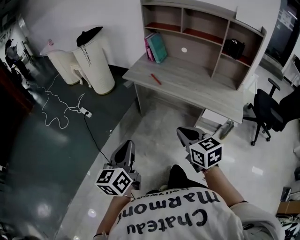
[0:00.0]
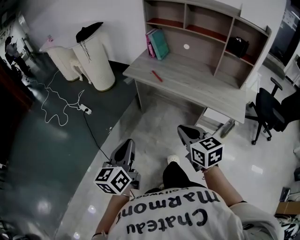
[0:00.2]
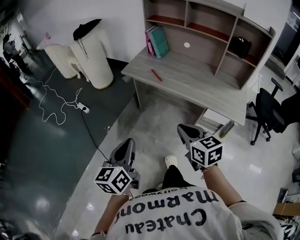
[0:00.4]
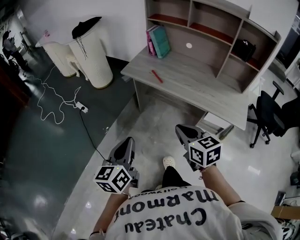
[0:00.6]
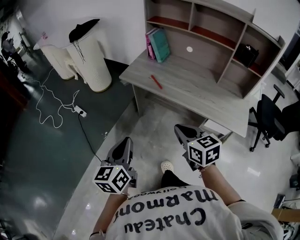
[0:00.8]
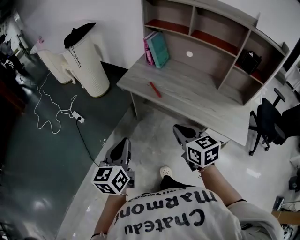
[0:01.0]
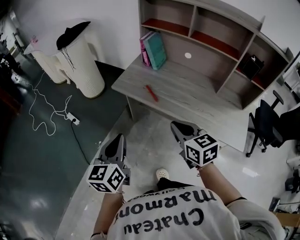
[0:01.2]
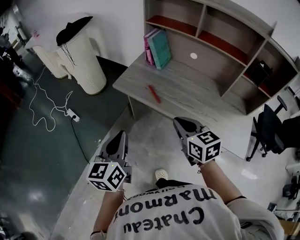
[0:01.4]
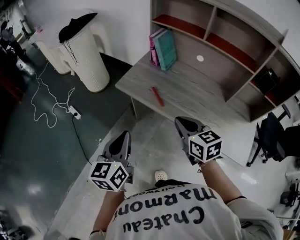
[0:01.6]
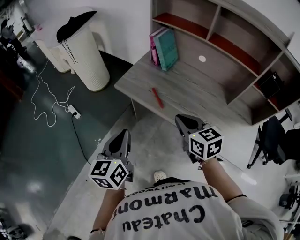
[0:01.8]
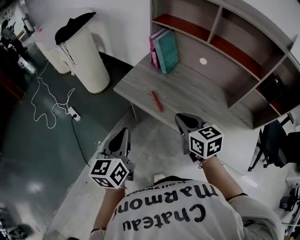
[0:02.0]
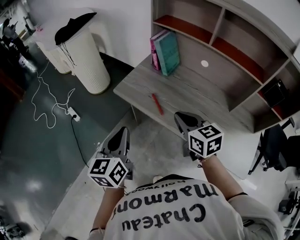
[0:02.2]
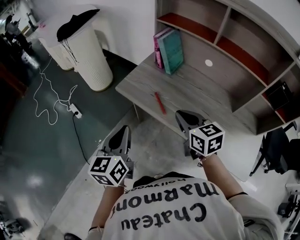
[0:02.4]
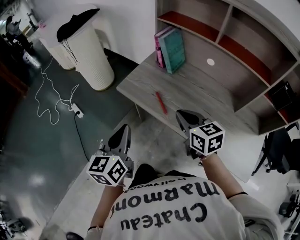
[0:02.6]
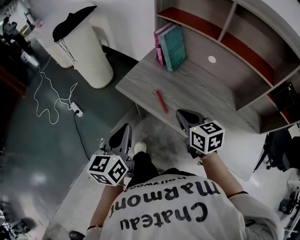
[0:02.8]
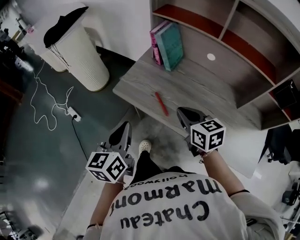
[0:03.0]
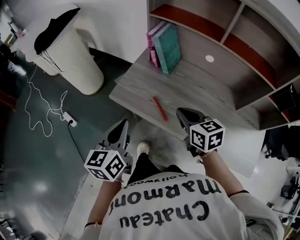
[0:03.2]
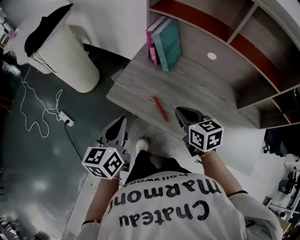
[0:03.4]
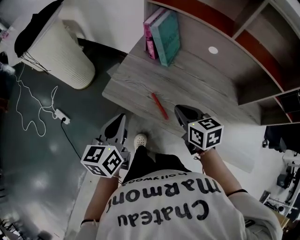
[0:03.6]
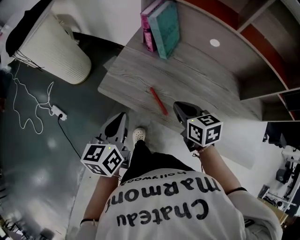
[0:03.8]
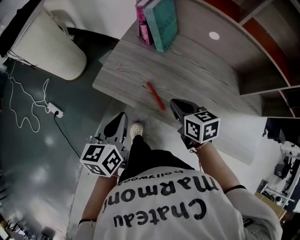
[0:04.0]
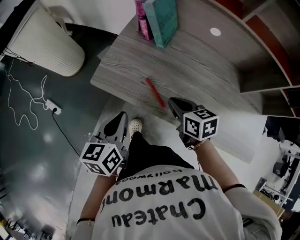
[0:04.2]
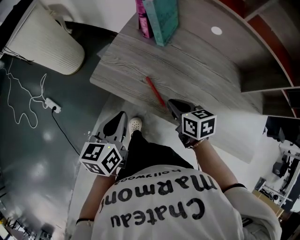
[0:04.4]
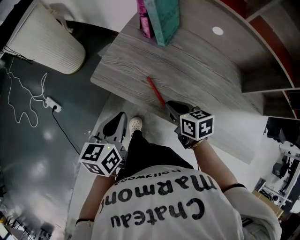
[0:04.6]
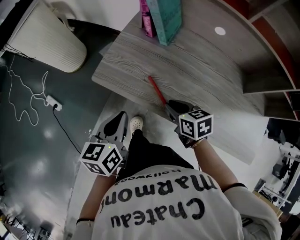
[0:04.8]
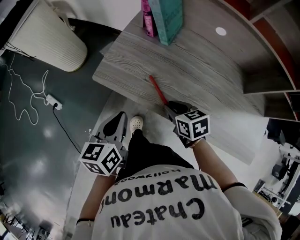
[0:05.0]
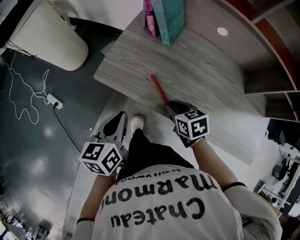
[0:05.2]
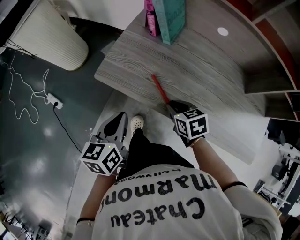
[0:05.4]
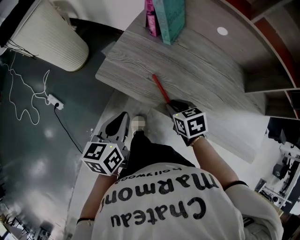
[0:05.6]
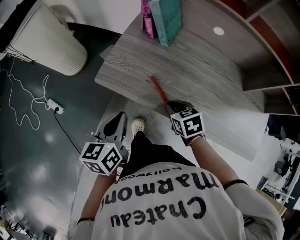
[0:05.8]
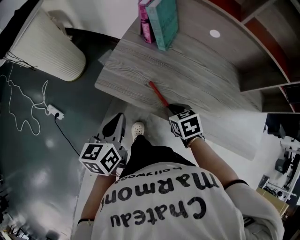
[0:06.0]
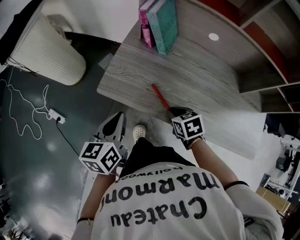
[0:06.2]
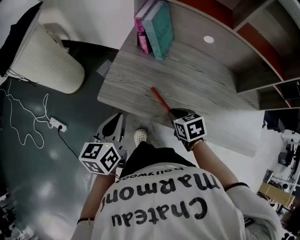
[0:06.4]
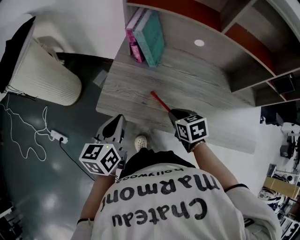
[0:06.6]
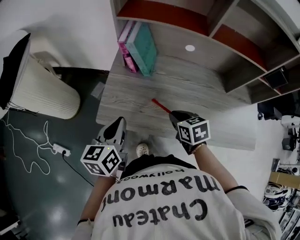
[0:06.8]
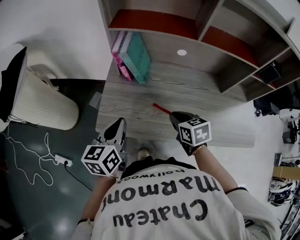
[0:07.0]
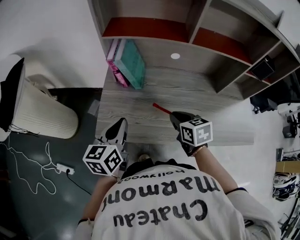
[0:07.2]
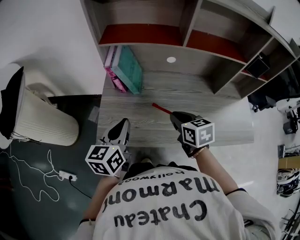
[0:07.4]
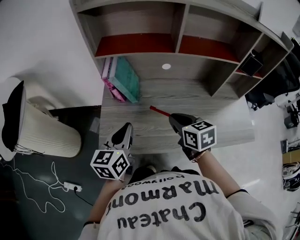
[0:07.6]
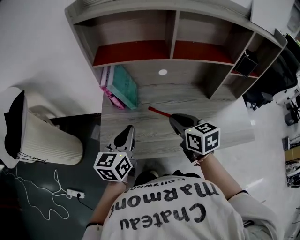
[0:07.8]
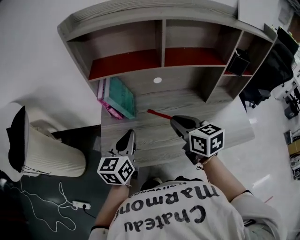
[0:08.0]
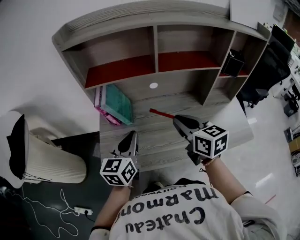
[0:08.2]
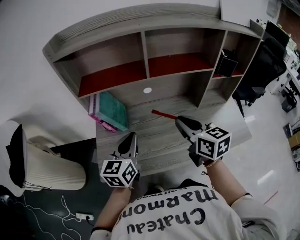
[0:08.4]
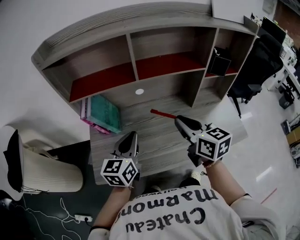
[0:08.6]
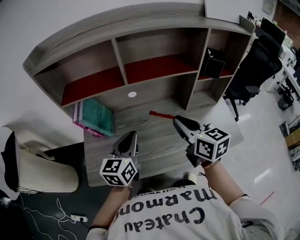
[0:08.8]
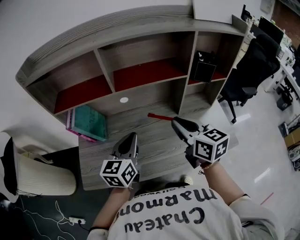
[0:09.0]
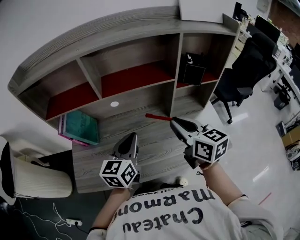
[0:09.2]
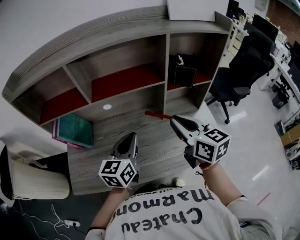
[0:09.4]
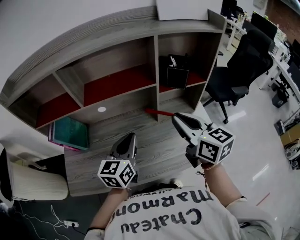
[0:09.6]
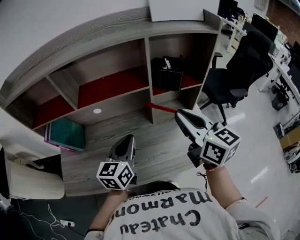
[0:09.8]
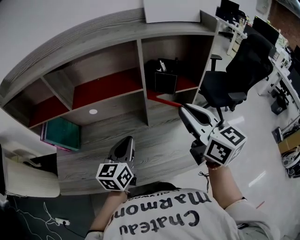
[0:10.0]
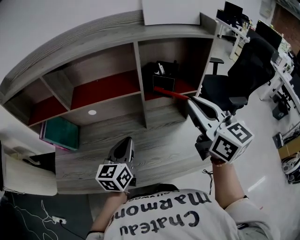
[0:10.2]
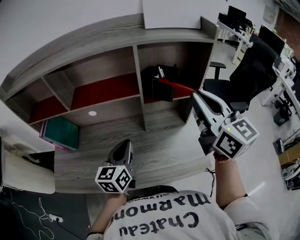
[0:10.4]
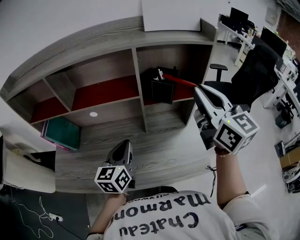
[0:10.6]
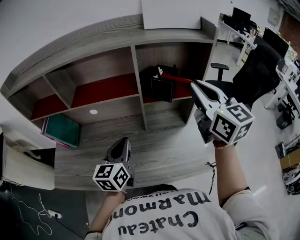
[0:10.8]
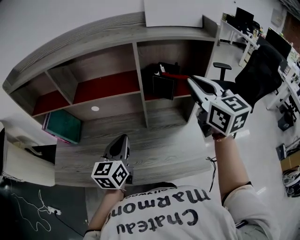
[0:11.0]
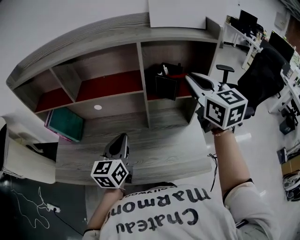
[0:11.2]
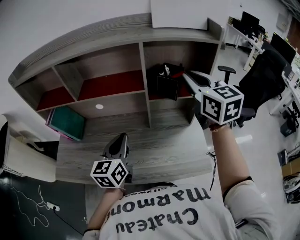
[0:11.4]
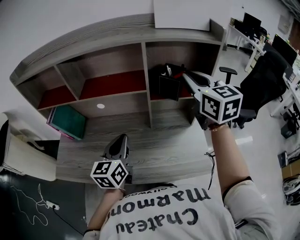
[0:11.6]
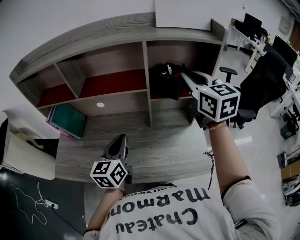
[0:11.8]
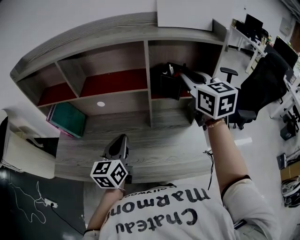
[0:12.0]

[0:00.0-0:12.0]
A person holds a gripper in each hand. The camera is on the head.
0:00.0 to 0:01.6: The grippers both shift forward by about 30 cm.
0:01.6 to 0:03.0: Both grippers move forward, about 15 cm.
0:03.0 to 0:04.4: The left gripper shifts about 15 cm downward and forward, while the right gripper travels downward by approximately 15 cm, and rotates some 20 degrees.
0:04.4 to 0:06.0: The right gripper rotates approximately 20 degrees.
0:06.0 to 0:07.6: The left gripper shifts about 20 cm forward, upward and to the right, and changes its angle by some 30 degrees. Meanwhile the right gripper shifts some 20 cm upward, and changes its angle by roughly 40 degrees.
0:07.6 to 0:09.0: The right gripper goes roughly 25 cm to the right and upward, and swivels some 20 degrees, while the left gripper travels to the right by approximately 20 cm.
0:09.0 to 0:10.4: The left gripper travels to the right by some 20 cm. Meanwhile the right gripper heads to the right and upward, covering roughly 30 cm, and rotates approximately 20 degrees.
0:10.4 to 0:12.0: The right gripper heads forward, covering roughly 10 cm.

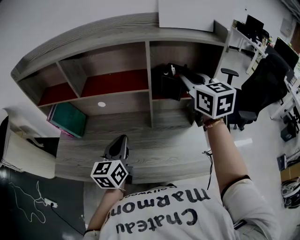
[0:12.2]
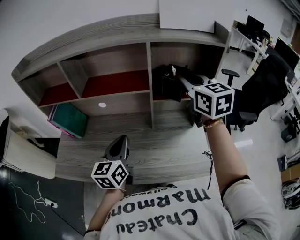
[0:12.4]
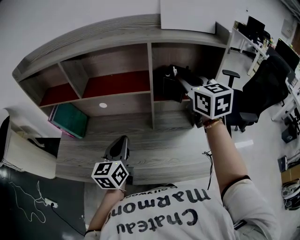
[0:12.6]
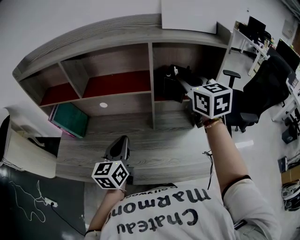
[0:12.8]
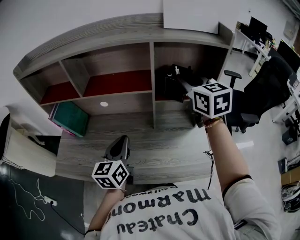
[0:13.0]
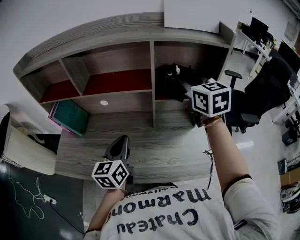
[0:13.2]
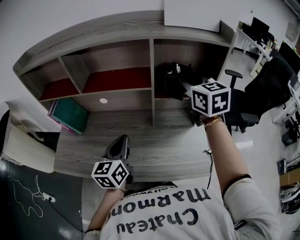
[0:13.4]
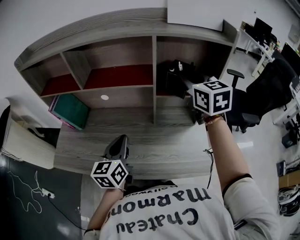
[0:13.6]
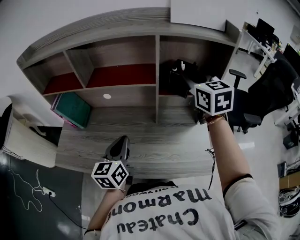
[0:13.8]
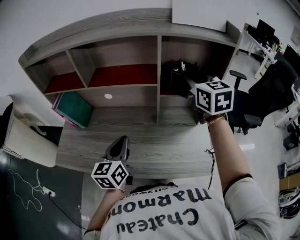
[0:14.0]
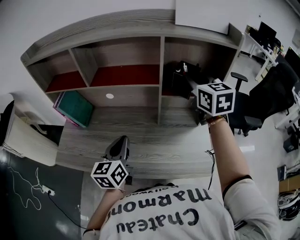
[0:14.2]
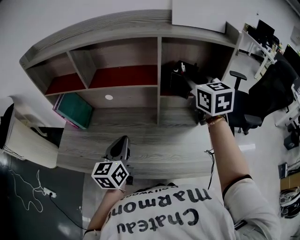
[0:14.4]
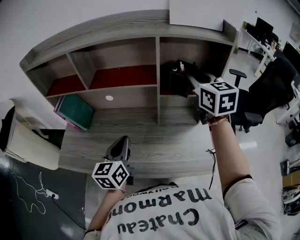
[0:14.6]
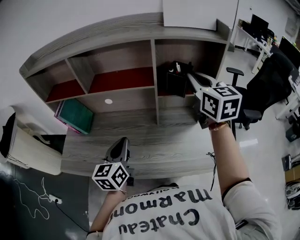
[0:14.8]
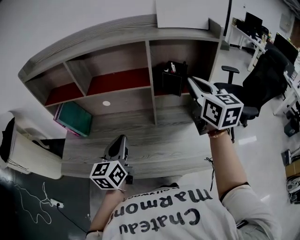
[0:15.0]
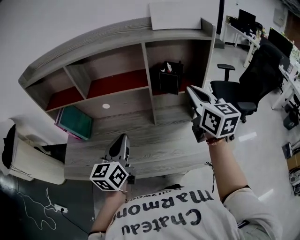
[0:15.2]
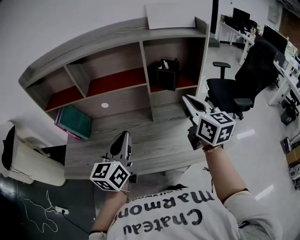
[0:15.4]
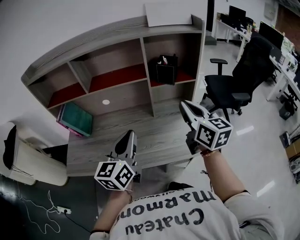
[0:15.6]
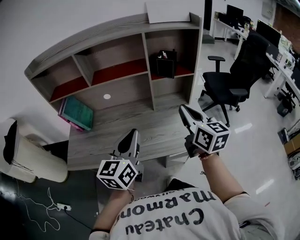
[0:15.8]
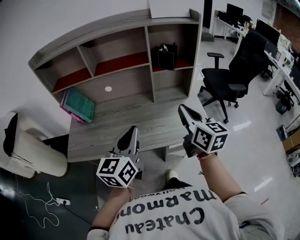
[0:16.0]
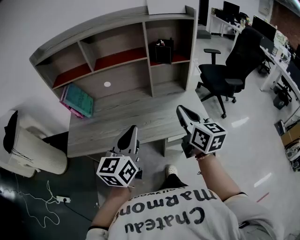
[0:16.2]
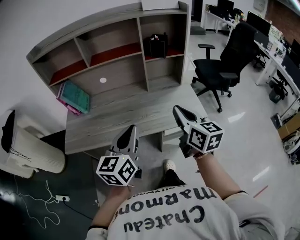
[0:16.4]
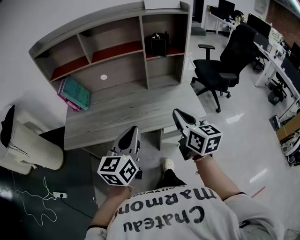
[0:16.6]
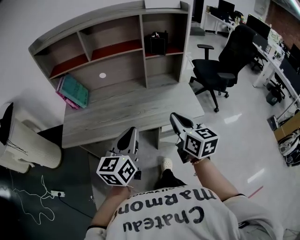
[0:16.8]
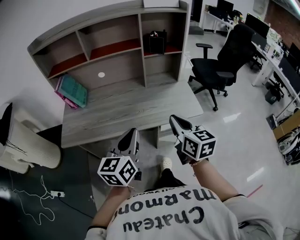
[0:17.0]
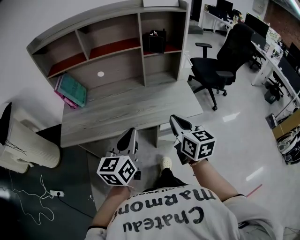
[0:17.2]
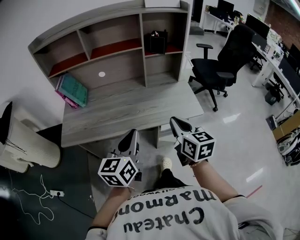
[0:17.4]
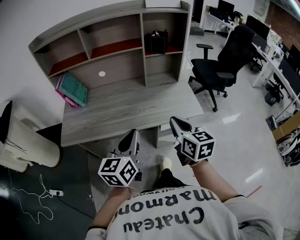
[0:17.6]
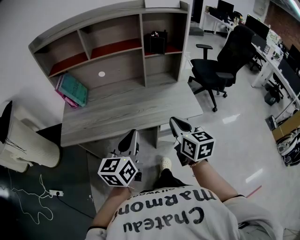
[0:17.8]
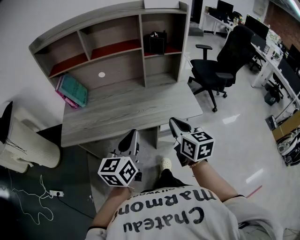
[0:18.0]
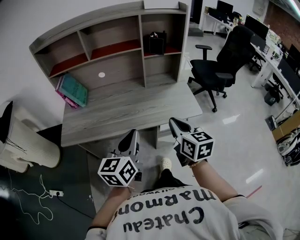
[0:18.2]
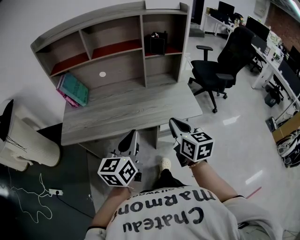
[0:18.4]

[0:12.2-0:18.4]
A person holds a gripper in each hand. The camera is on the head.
0:12.2 to 0:13.8: There are only small adjustments of the grippers.
0:13.8 to 0:15.4: The left gripper goes some 10 cm upward; the right gripper travels backward by approximately 15 cm, and rotates roughly 20 degrees.
0:15.4 to 0:16.8: The left gripper moves backward, about 20 cm, while the right gripper travels backward and downward by roughly 30 cm.
0:16.8 to 0:18.4: The grippers make only small movements.

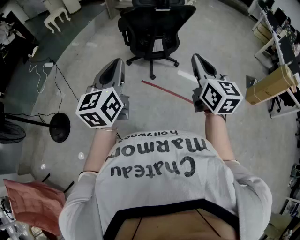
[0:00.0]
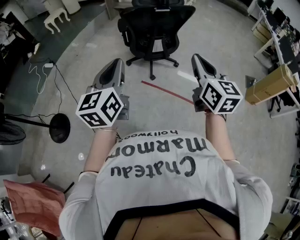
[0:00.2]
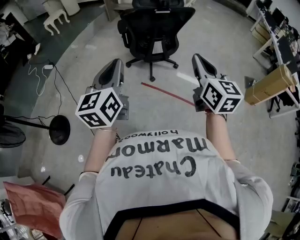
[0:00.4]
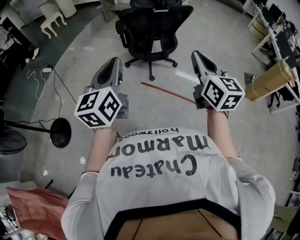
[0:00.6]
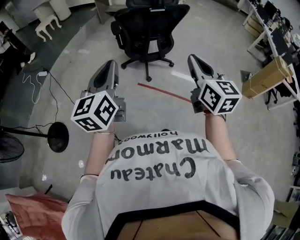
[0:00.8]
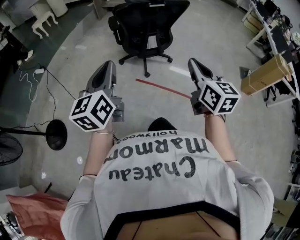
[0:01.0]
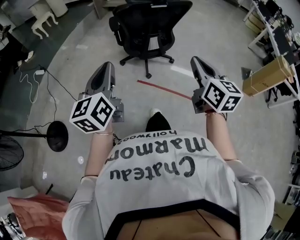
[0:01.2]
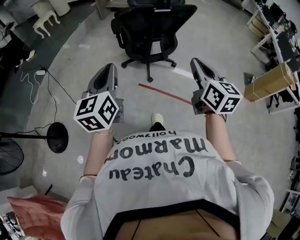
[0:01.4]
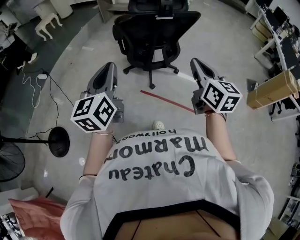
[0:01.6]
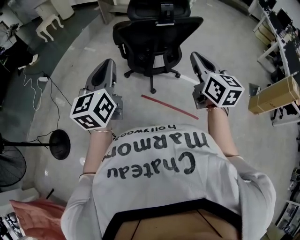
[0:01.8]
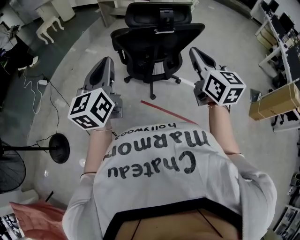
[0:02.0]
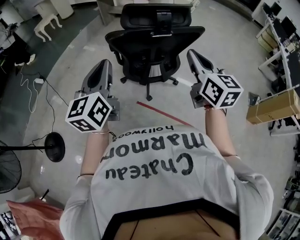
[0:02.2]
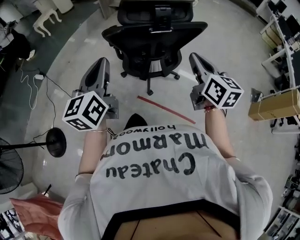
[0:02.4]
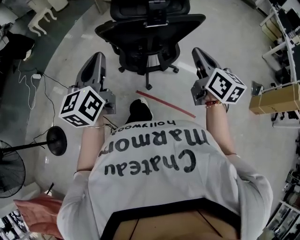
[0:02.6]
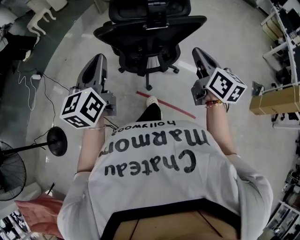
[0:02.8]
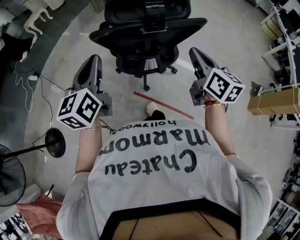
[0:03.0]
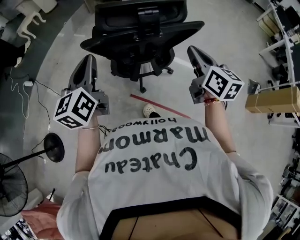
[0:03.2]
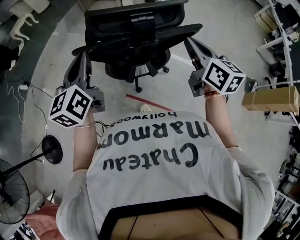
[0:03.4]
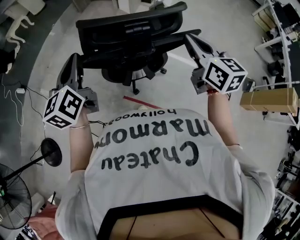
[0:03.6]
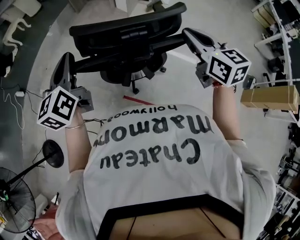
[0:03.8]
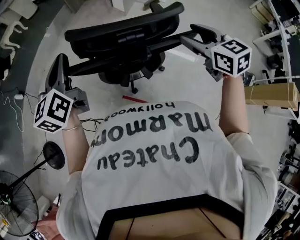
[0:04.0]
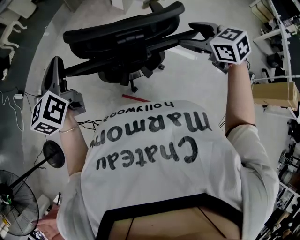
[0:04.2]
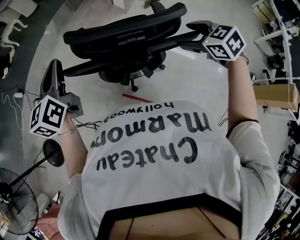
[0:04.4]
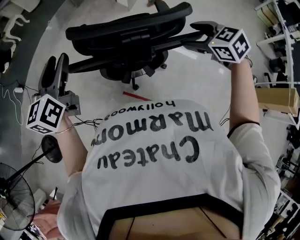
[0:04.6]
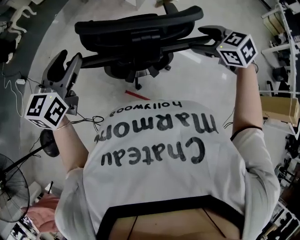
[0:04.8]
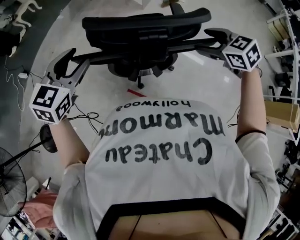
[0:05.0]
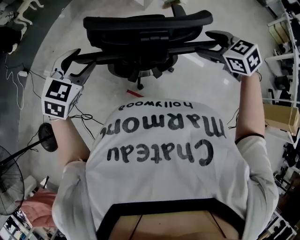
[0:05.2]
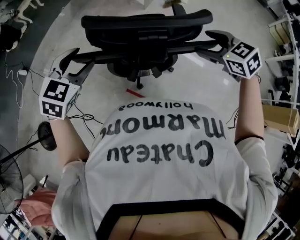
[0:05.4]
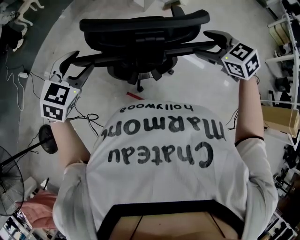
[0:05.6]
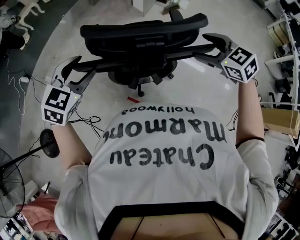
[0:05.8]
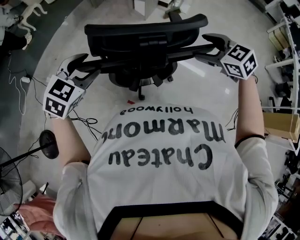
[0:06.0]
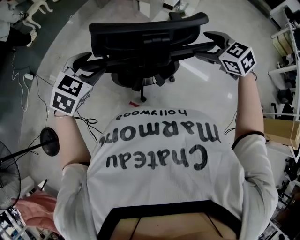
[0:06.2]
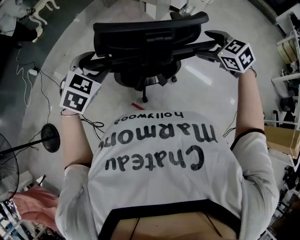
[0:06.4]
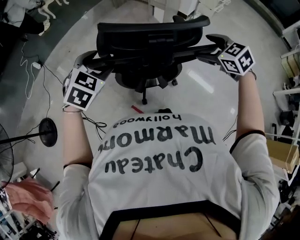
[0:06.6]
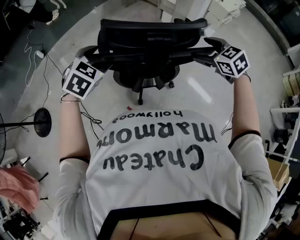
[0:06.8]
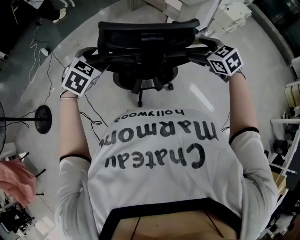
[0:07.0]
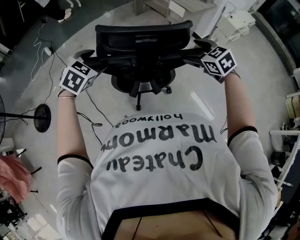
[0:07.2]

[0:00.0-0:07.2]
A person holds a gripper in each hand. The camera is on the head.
0:00.0 to 0:01.4: The left gripper shifts approximately 10 cm forward; the right gripper is displaced forward and downward by approximately 10 cm.
0:01.4 to 0:02.8: Both grippers move forward, some 25 cm.
0:02.8 to 0:04.4: Both grippers travel together forward, about 20 cm. The right gripper tips its fingers downward by roughly 40 degrees, and opens up.
0:04.4 to 0:05.8: The left gripper moves downward and to the right, some 10 cm, swivels roughly 50 degrees, and opens up.
0:05.8 to 0:07.2: The left gripper travels forward by approximately 10 cm, and swivels some 30 degrees. Meanwhile the right gripper moves forward, roughly 20 cm.
